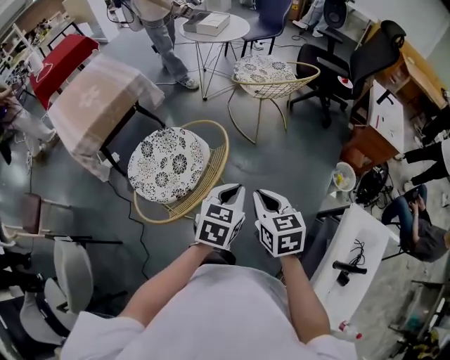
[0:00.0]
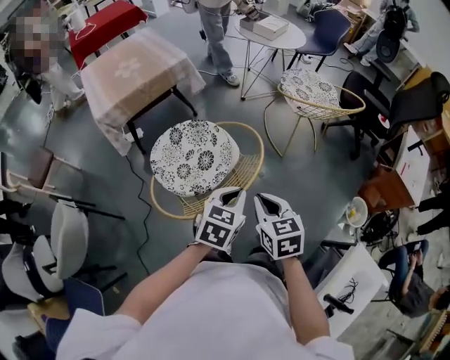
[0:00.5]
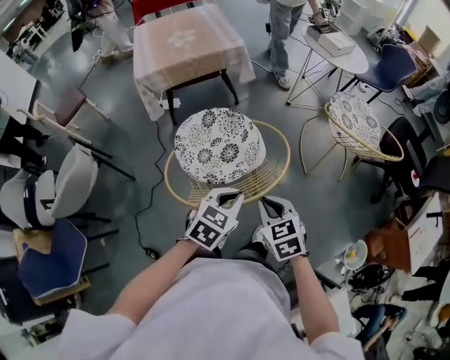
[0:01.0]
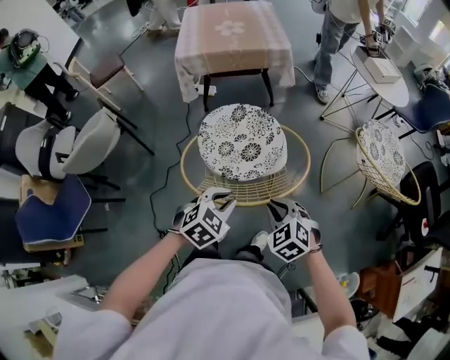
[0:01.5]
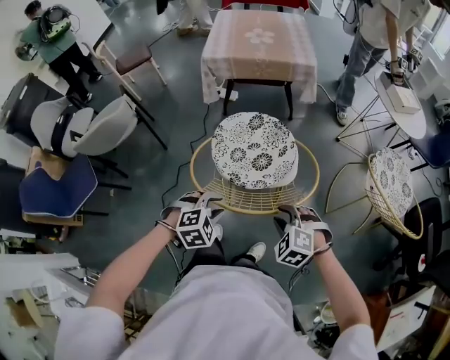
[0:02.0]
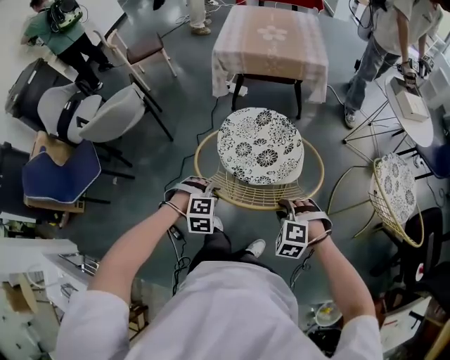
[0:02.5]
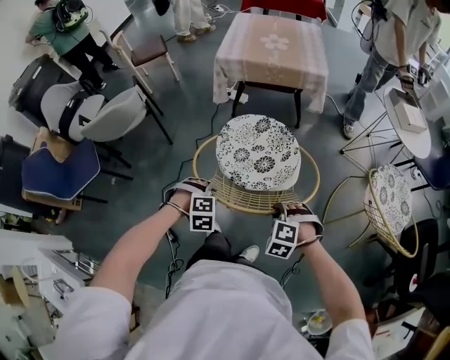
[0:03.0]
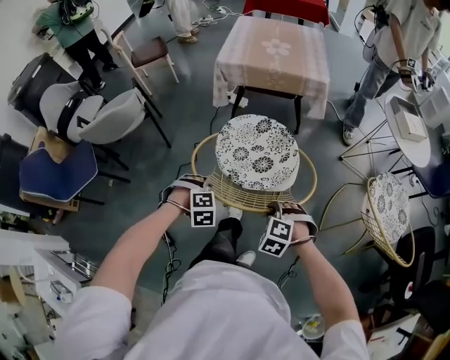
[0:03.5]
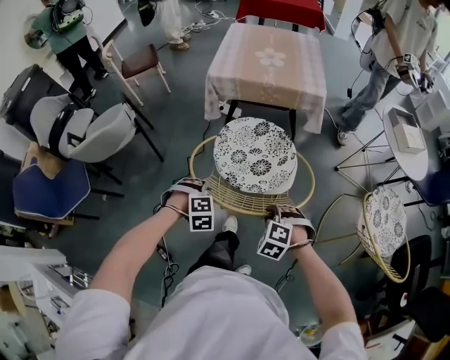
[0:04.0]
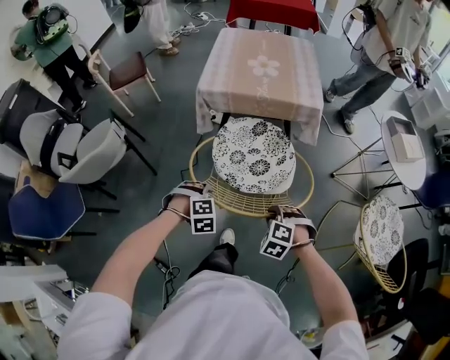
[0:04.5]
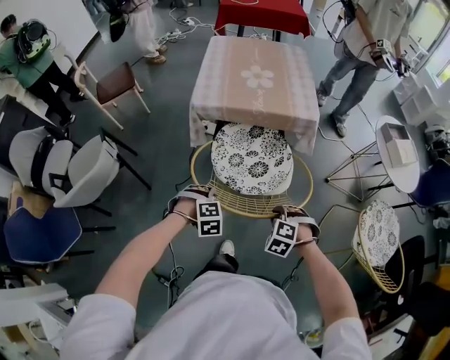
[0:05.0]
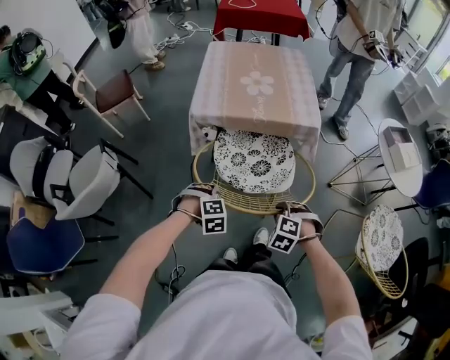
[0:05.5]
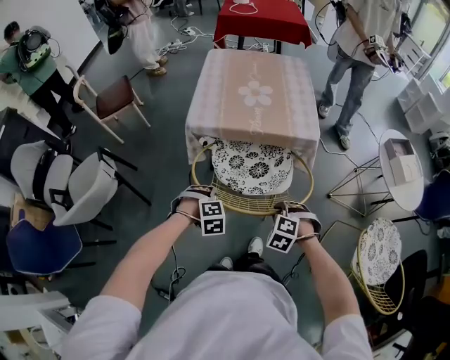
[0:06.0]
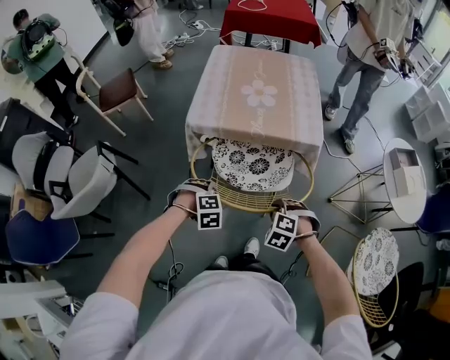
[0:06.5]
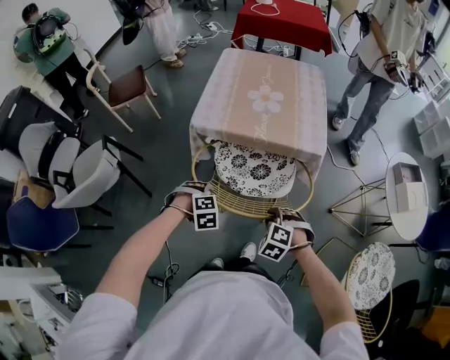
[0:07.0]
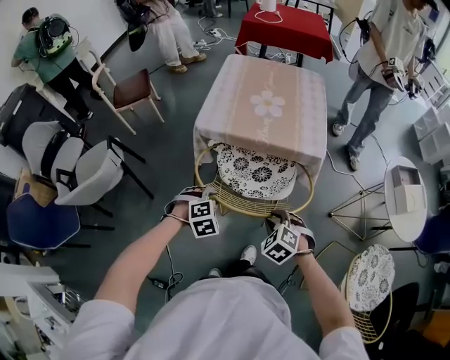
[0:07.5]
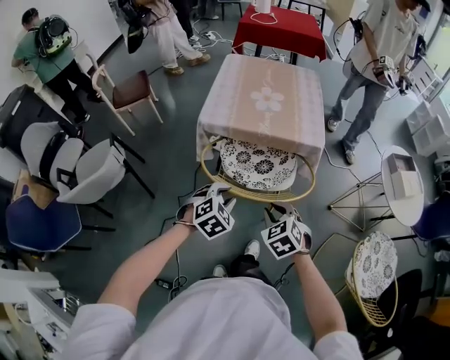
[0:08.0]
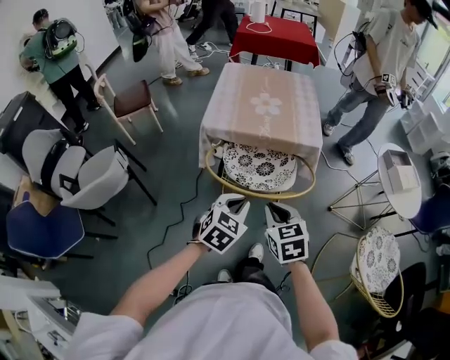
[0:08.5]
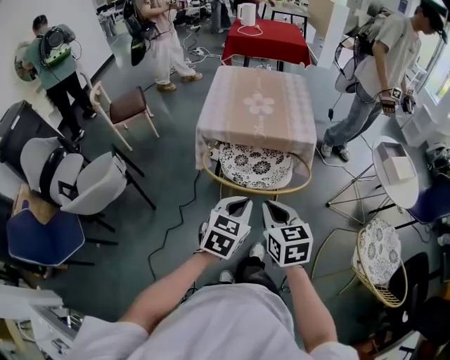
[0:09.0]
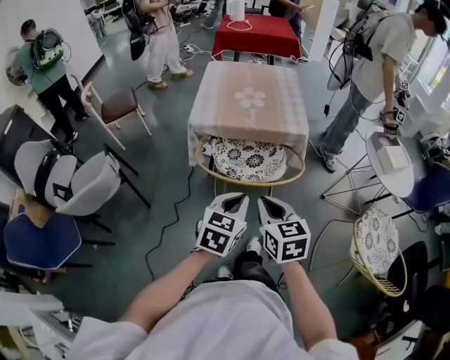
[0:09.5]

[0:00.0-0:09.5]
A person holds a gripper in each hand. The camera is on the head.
0:00.0 to 0:02.0: The left gripper changes place by approximately 20 cm, changes its angle by about 40 degrees, and opens up; the right gripper moves roughly 20 cm, twists about 100 degrees counterclockwise, seen from behind, and opens its fingers.
0:02.0 to 0:04.0: Both grippers move forward, about 15 cm. The left gripper turns by about 20 degrees.
0:04.0 to 0:05.5: Both grippers move forward, about 20 cm.
0:05.5 to 0:07.5: The right gripper shifts by approximately 10 cm. The left gripper ends up about 10 cm from where it was.
0:07.5 to 0:09.5: The left gripper travels upward, backward and to the right by approximately 20 cm, points its fingers approximately 40 degrees further upward, and closes, while the right gripper shifts roughly 20 cm upward and backward, and twists about 50 degrees clockwise, seen from behind.

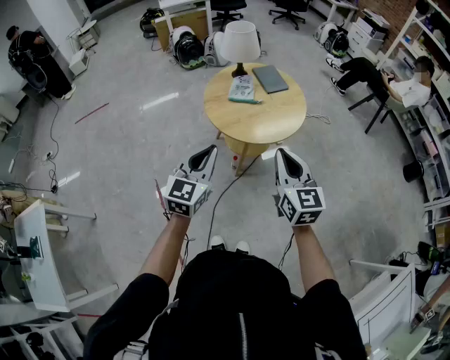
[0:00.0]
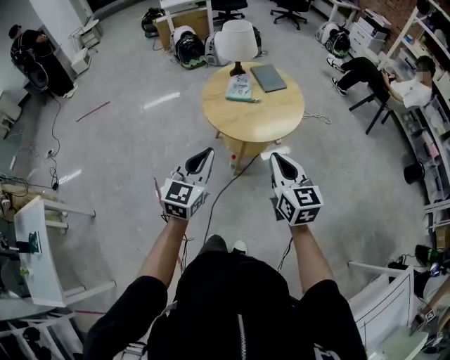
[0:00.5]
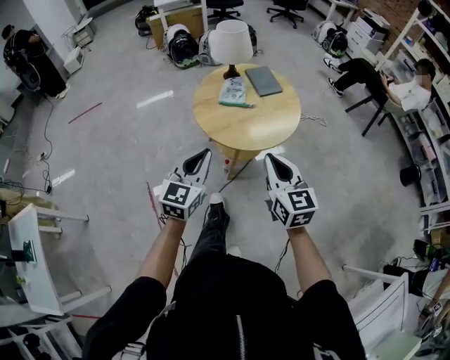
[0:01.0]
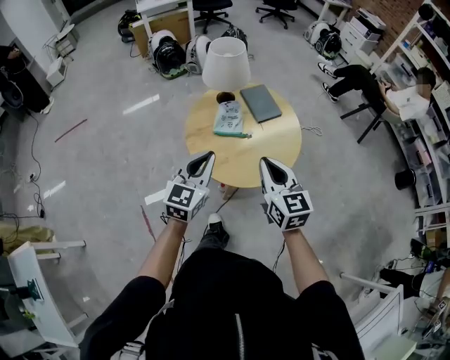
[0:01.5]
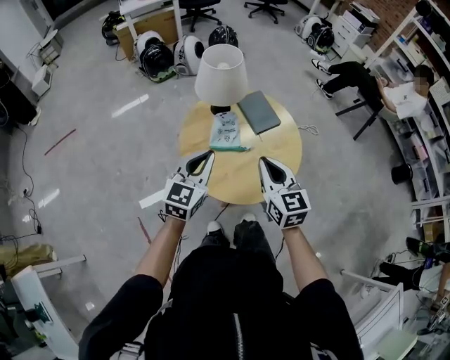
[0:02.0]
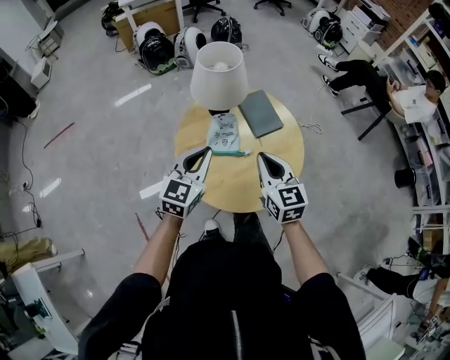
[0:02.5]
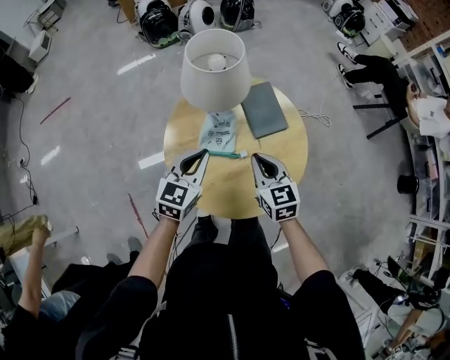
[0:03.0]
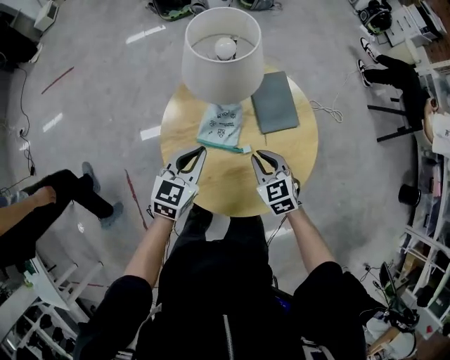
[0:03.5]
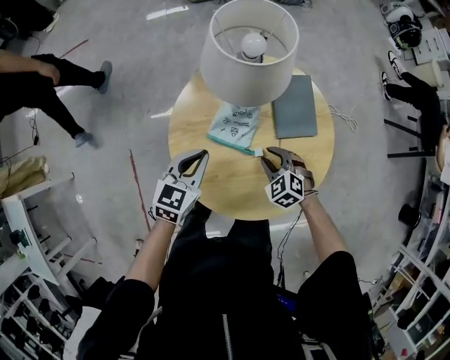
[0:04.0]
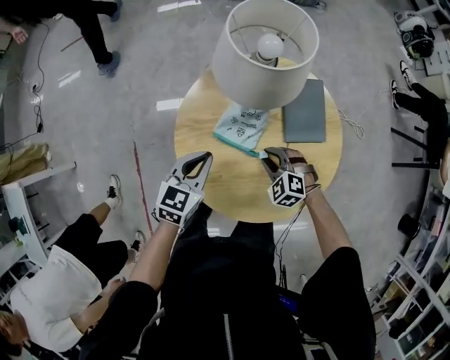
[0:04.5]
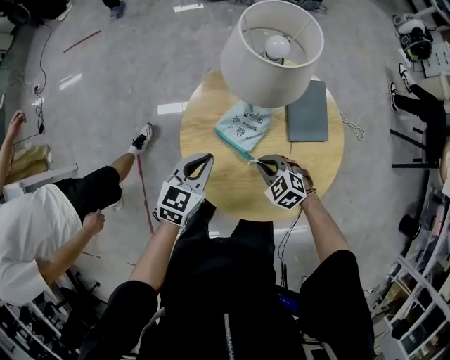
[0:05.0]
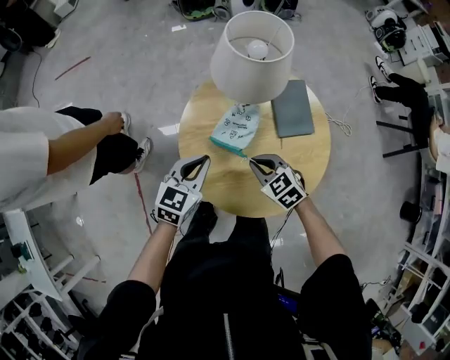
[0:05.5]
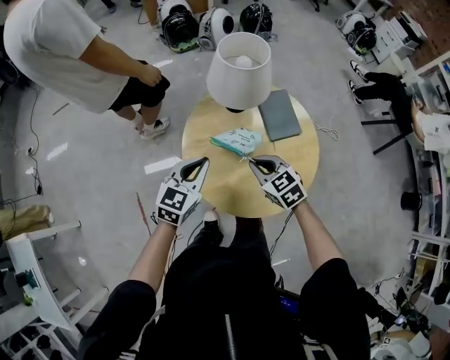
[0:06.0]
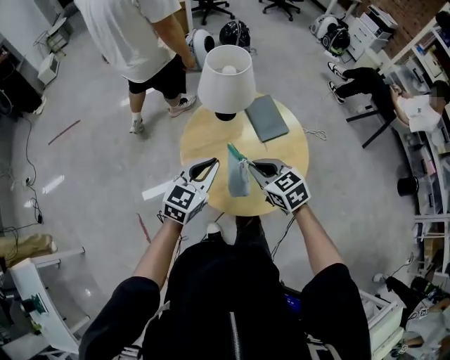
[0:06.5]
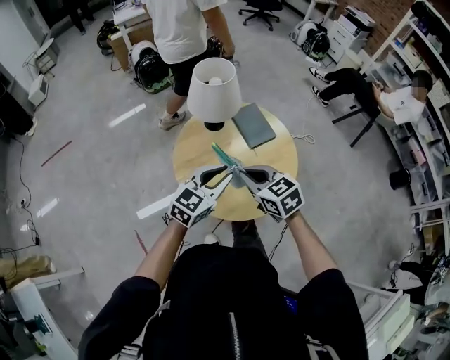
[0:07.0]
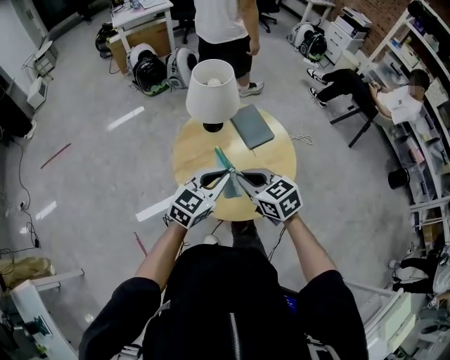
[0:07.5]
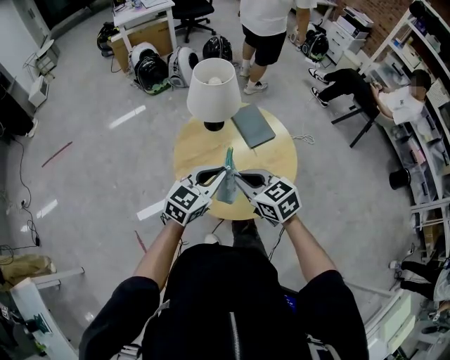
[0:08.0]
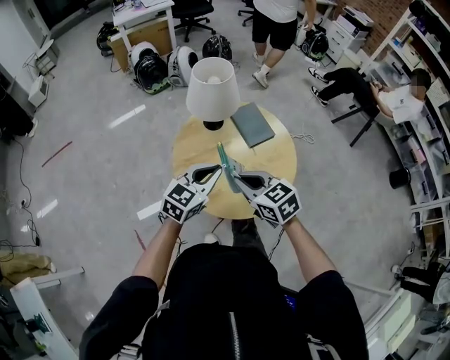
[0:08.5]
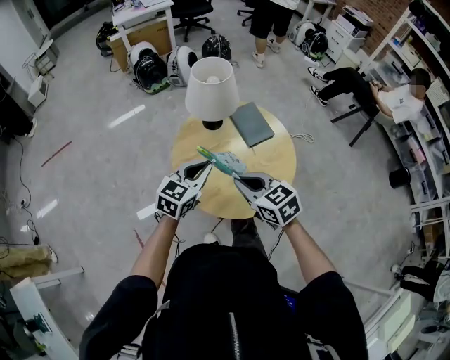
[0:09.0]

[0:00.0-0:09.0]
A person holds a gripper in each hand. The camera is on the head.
0:00.0 to 0:02.0: Both grippers travel together forward, about 35 cm.
0:02.0 to 0:04.5: The left gripper moves downward, approximately 20 cm, and rotates about 30 degrees, while the right gripper is displaced downward by approximately 35 cm, angles its fingers downward, by roughly 40 degrees, and opens its fingers.
0:04.5 to 0:07.0: The left gripper shifts roughly 20 cm upward, and rotates some 40 degrees; the right gripper moves upward, approximately 30 cm, and rotates around the line of its fingers by approximately 50 degrees, clockwise from behind.
0:07.0 to 0:09.0: The left gripper ends up about 5 cm from where it was.

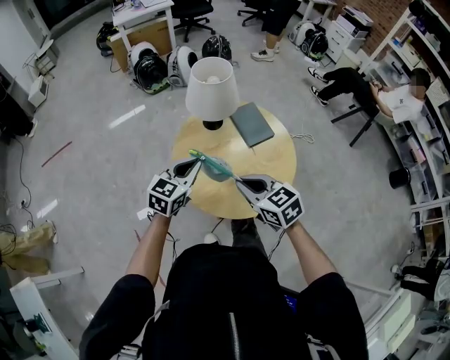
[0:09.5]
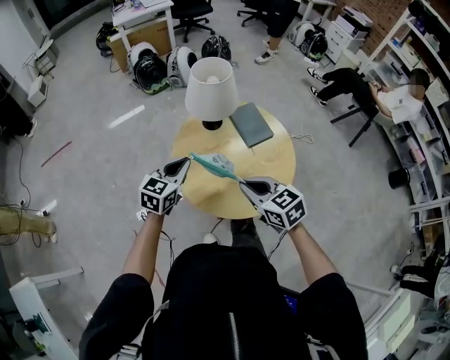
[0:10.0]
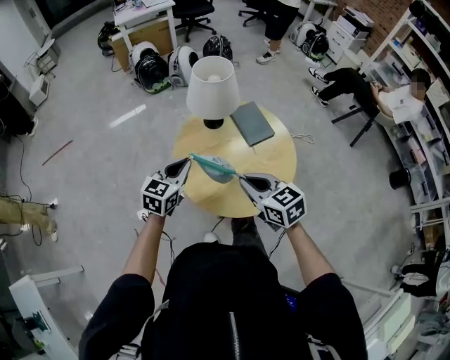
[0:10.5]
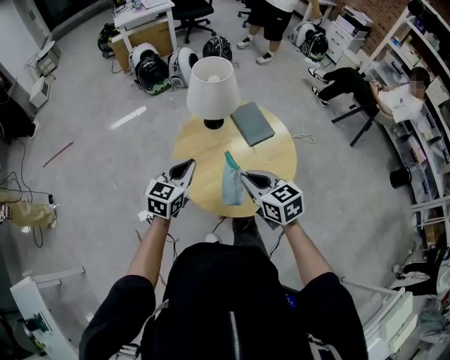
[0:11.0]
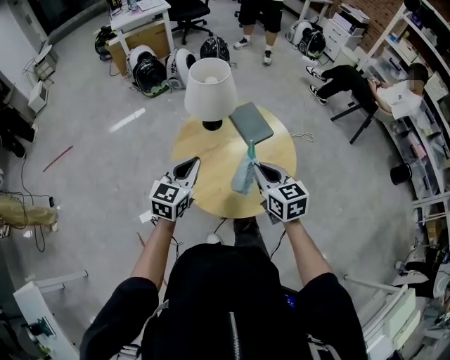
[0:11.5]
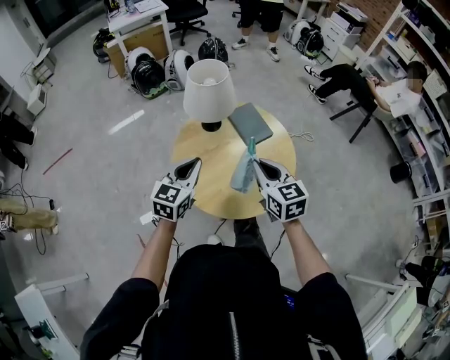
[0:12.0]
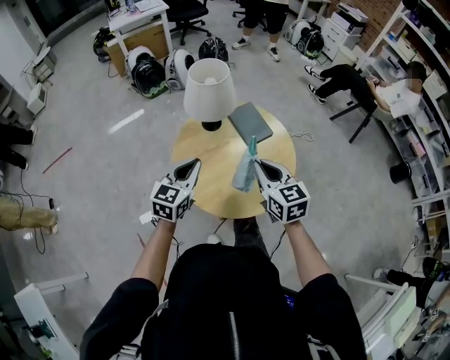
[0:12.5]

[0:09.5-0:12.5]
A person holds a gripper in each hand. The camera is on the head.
0:09.5 to 0:11.0: There are only small adjustments of the grippers.
0:11.0 to 0:12.5: The right gripper shifts by some 5 cm.

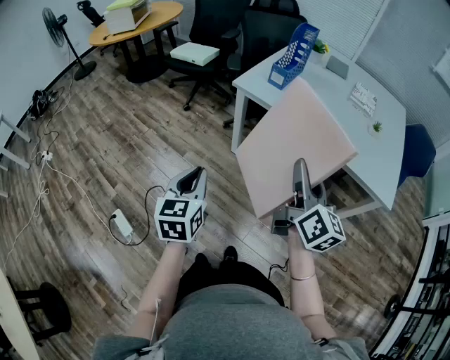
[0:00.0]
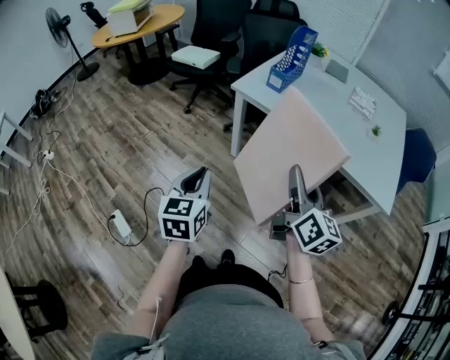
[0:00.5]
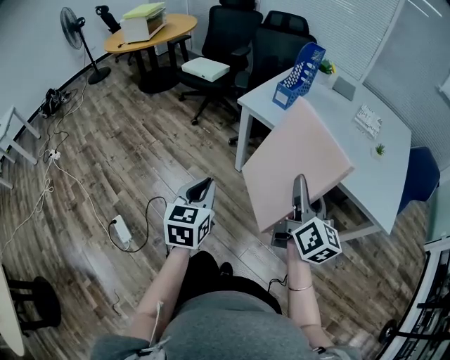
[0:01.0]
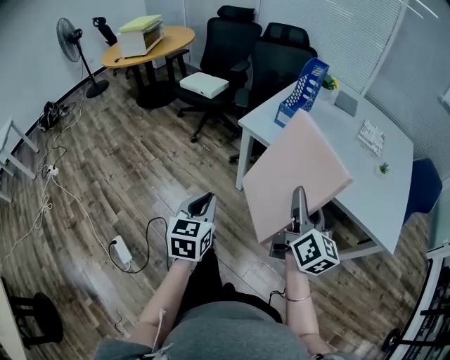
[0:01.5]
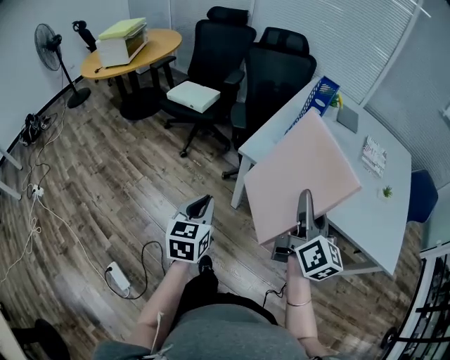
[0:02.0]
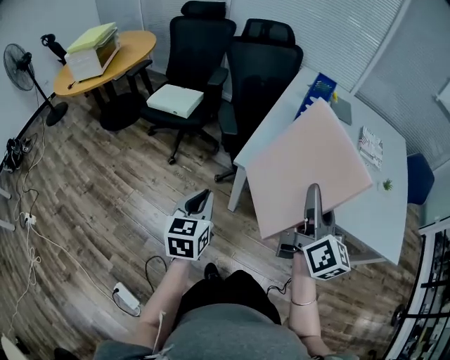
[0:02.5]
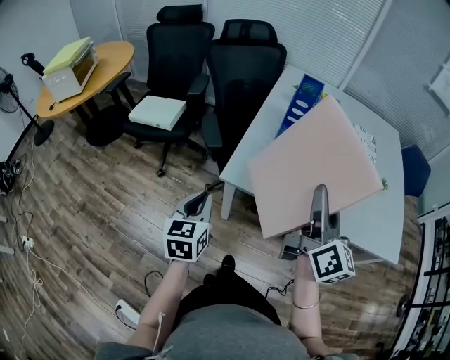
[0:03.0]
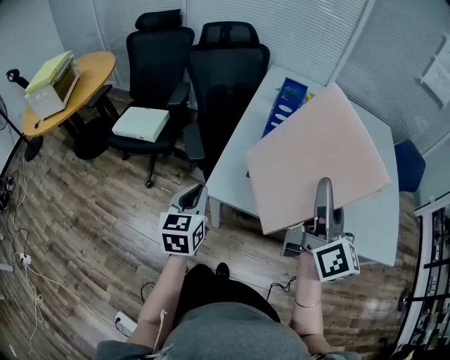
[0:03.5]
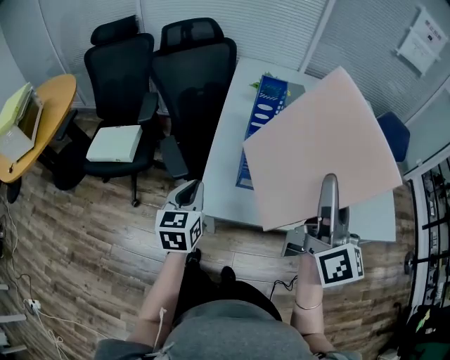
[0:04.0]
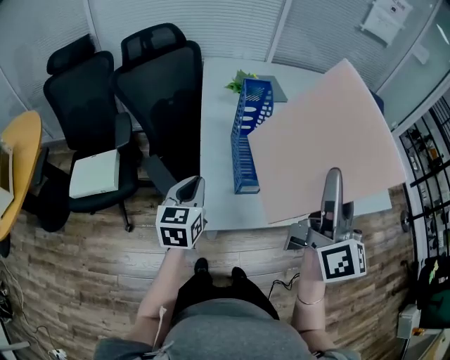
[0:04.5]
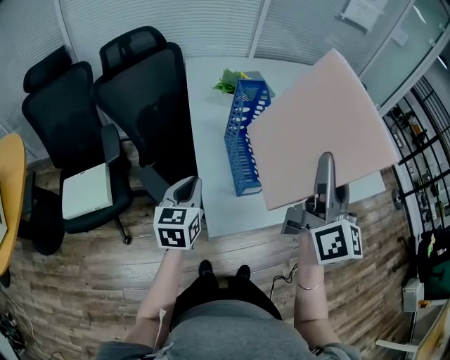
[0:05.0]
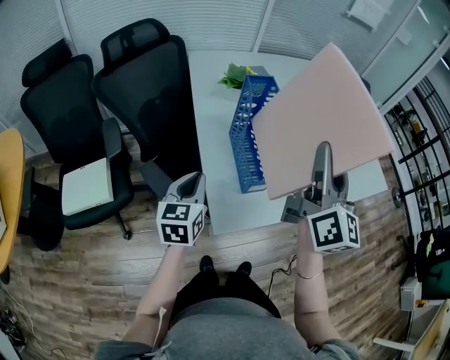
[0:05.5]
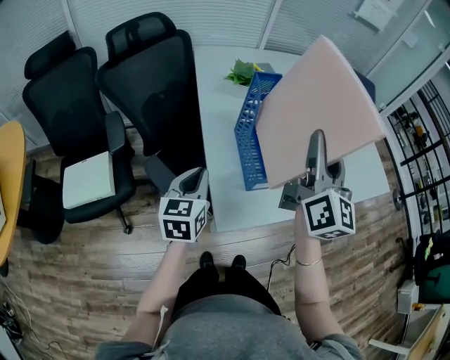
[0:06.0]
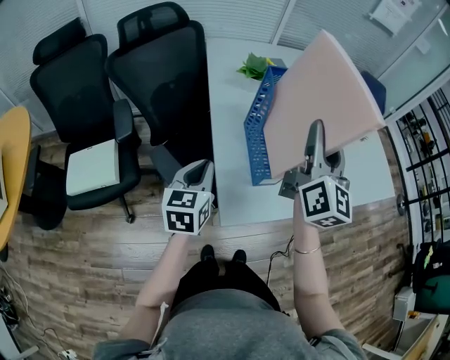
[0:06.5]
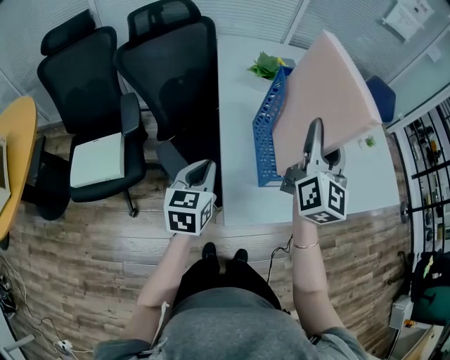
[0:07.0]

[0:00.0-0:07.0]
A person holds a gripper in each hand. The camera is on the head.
0:00.0 to 0:02.0: Both grippers move forward, some 20 cm.
0:02.0 to 0:03.5: The left gripper shifts roughly 25 cm forward; the right gripper goes approximately 15 cm forward and upward.
0:03.5 to 0:05.0: The right gripper changes place by roughly 10 cm, and turns by roughly 40 degrees. Meanwhile the left gripper moves approximately 15 cm, and turns by some 30 degrees.
0:05.0 to 0:07.0: The right gripper goes some 15 cm forward, to the left and downward.
